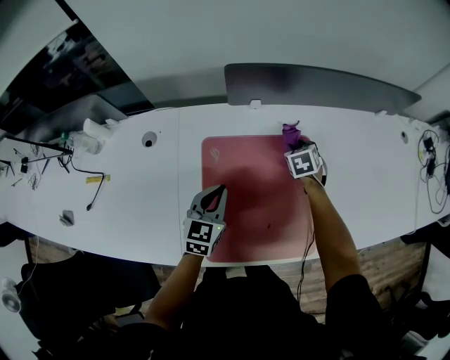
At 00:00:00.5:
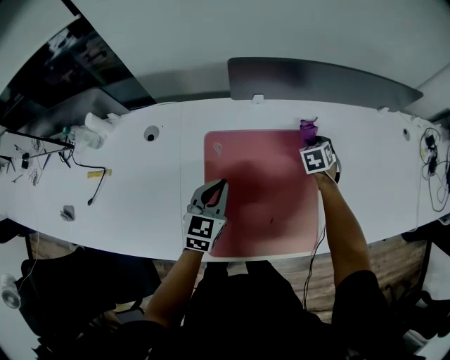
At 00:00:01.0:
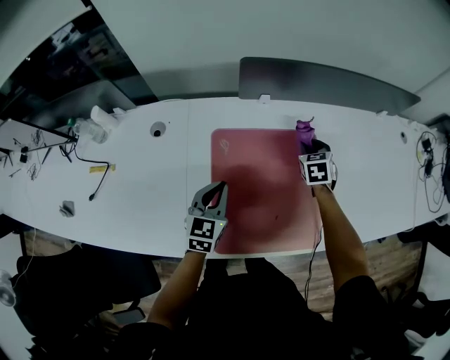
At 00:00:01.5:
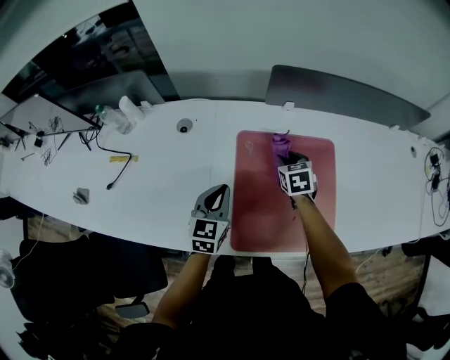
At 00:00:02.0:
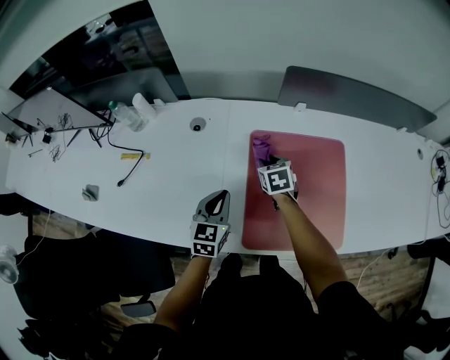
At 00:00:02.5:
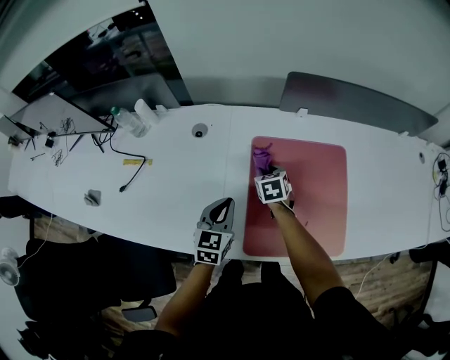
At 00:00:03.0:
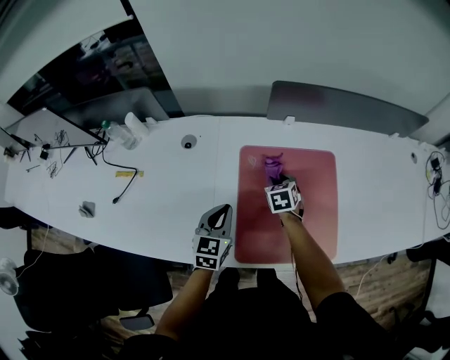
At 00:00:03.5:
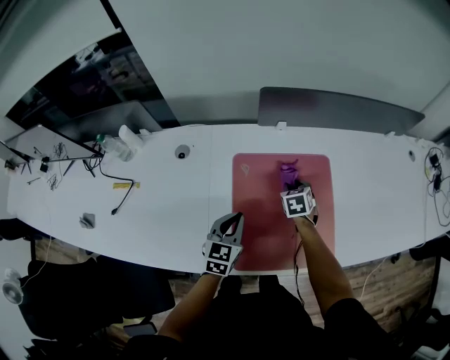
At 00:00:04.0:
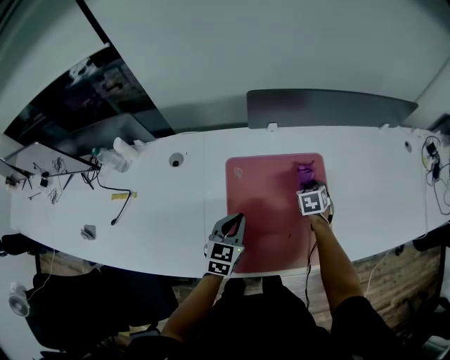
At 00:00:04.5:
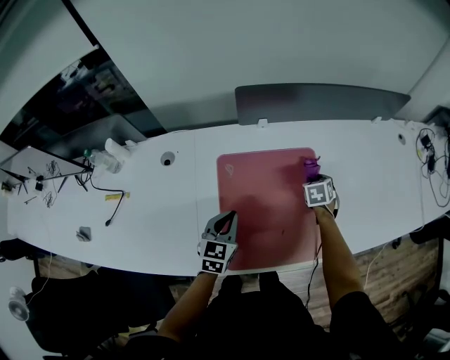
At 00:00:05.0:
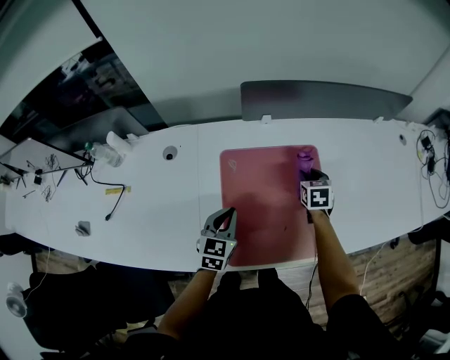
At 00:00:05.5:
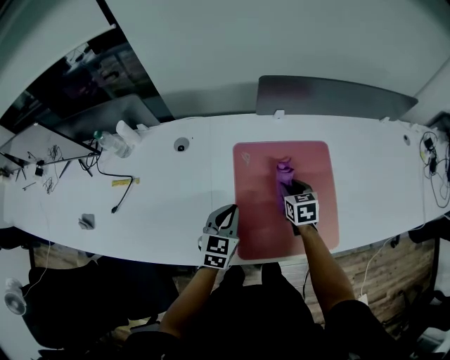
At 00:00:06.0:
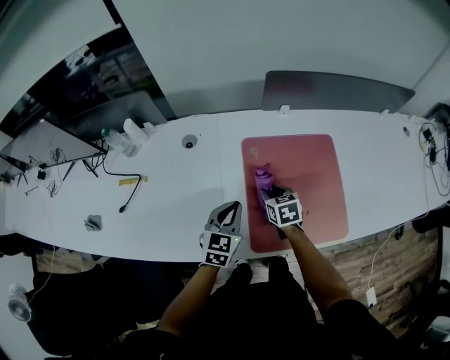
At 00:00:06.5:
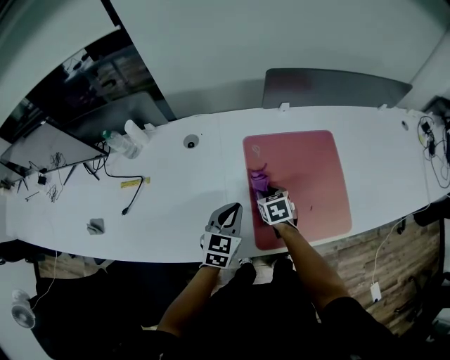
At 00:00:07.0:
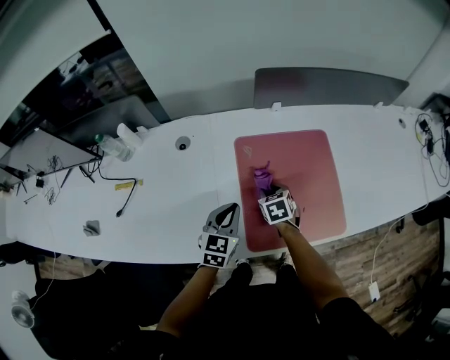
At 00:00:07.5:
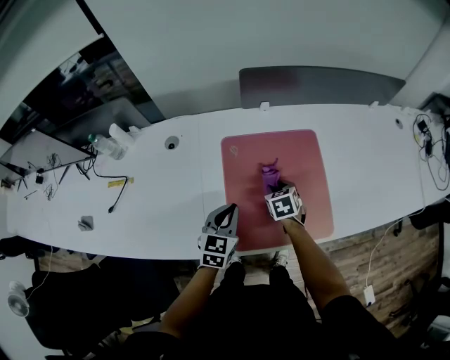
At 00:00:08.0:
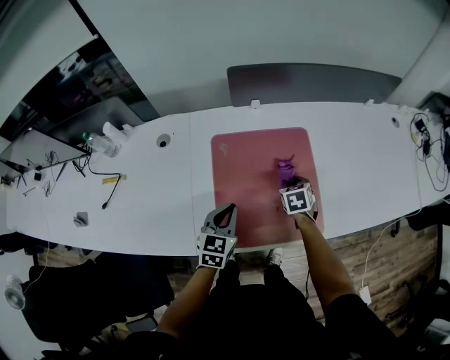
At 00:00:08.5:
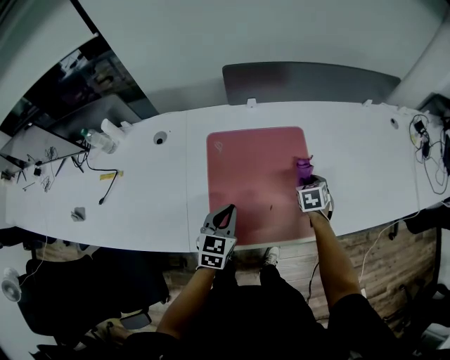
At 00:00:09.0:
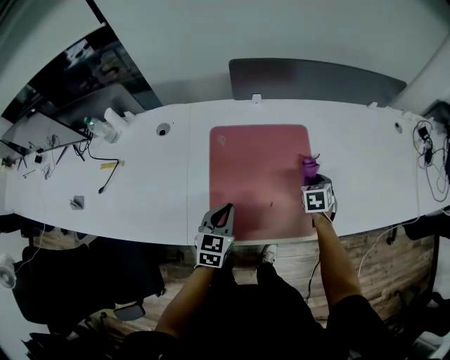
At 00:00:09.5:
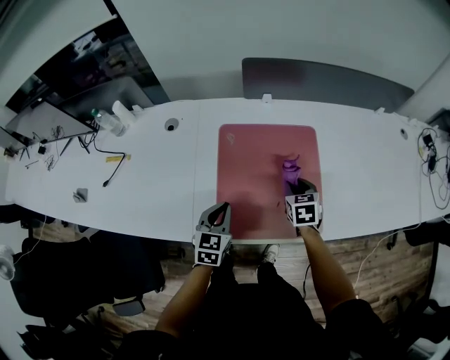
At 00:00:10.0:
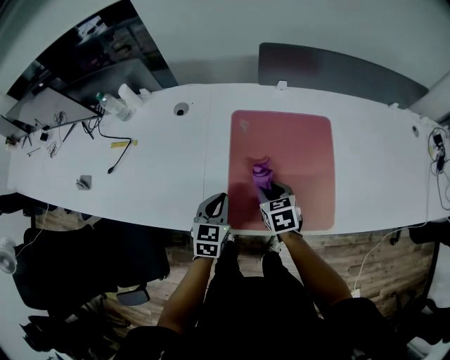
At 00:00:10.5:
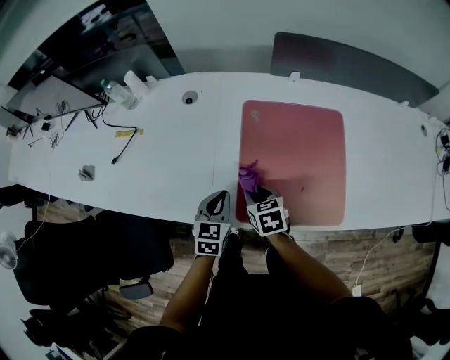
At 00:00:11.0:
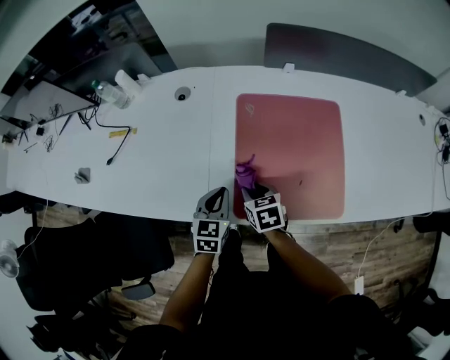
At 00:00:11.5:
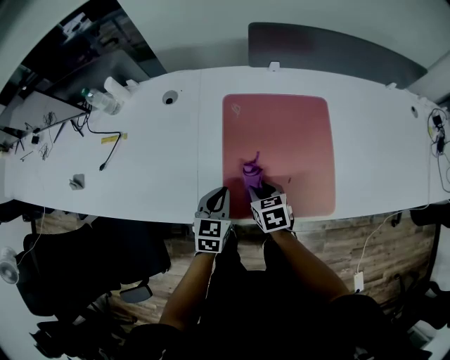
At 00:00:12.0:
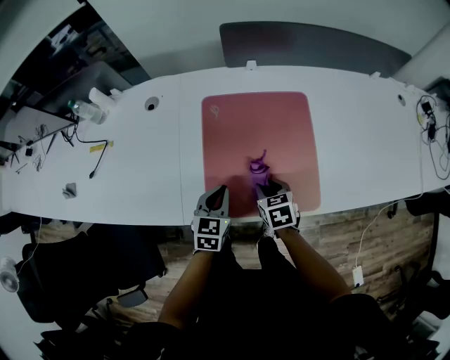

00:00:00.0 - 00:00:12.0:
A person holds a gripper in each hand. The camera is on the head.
00:00:00.0 - 00:00:02.0: The left gripper shifts approximately 15 cm to the left and backward. The right gripper travels to the left and backward by about 30 cm.
00:00:02.0 - 00:00:04.0: The left gripper travels to the right by roughly 10 cm. Meanwhile the right gripper shifts some 25 cm to the right, and changes its angle by roughly 20 degrees.
00:00:04.0 - 00:00:06.0: The left gripper heads to the left, covering roughly 10 cm. Meanwhile the right gripper moves to the left and backward, roughly 25 cm, and swivels approximately 20 degrees.
00:00:06.0 - 00:00:08.0: The right gripper travels to the right by some 20 cm; the left gripper is displaced to the right by some 10 cm.
00:00:08.0 - 00:00:10.0: The left gripper travels to the left by roughly 5 cm, while the right gripper shifts roughly 15 cm to the left and backward.
00:00:10.0 - 00:00:12.0: The right gripper moves to the right and backward, roughly 10 cm. The left gripper travels to the right by about 5 cm.

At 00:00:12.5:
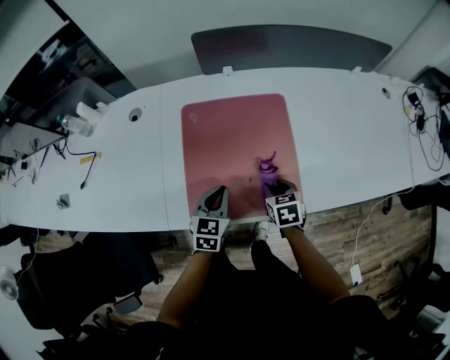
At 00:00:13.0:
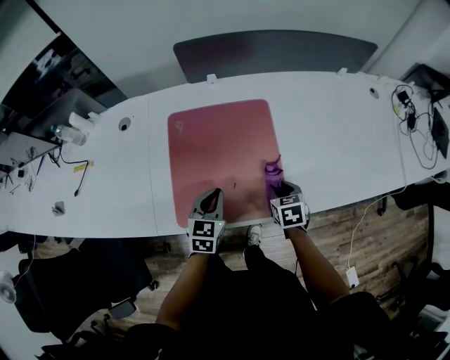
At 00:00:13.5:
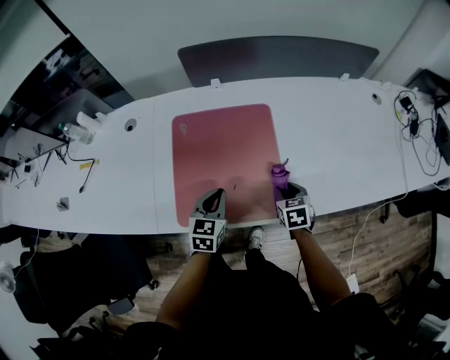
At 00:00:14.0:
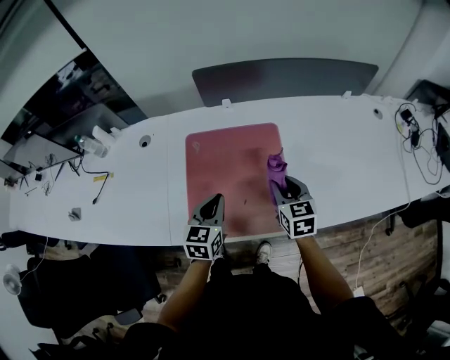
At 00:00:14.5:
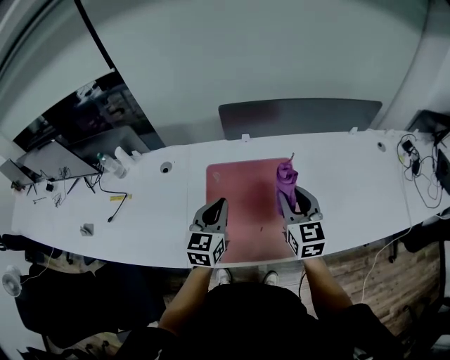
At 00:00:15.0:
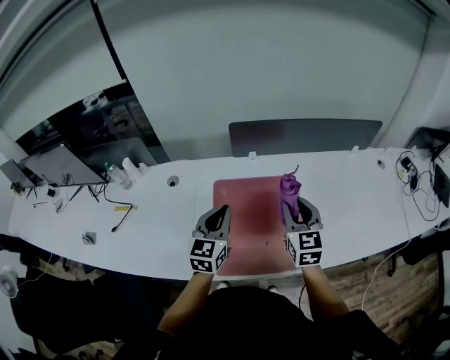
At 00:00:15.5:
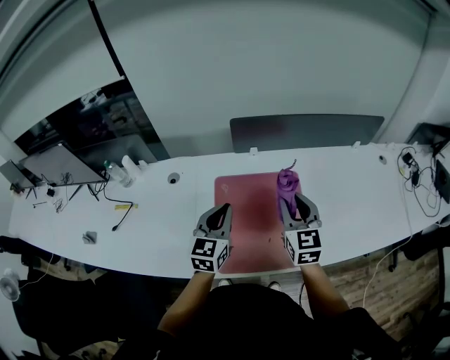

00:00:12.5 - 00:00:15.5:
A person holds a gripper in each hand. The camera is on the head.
00:00:12.5 - 00:00:14.0: The left gripper travels upward by about 10 cm; the right gripper is displaced upward and forward by some 15 cm, and turns by approximately 20 degrees.
00:00:14.0 - 00:00:15.5: The left gripper moves upward, to the left and forward, about 15 cm. Meanwhile the right gripper shifts roughly 15 cm upward and to the left, and rotates some 20 degrees.

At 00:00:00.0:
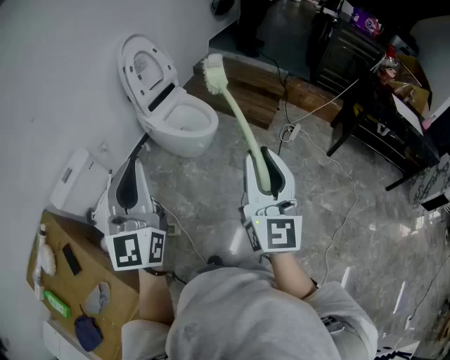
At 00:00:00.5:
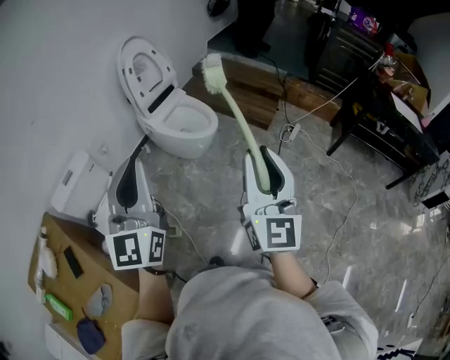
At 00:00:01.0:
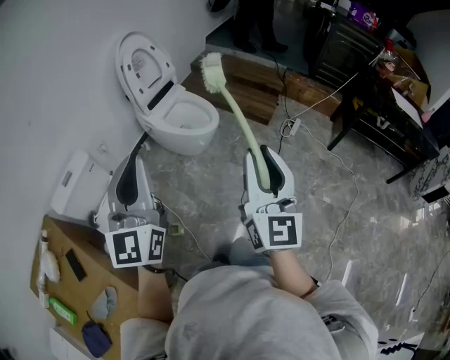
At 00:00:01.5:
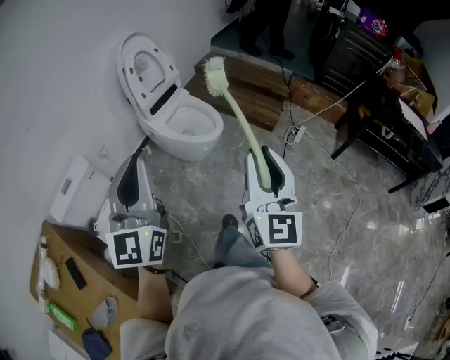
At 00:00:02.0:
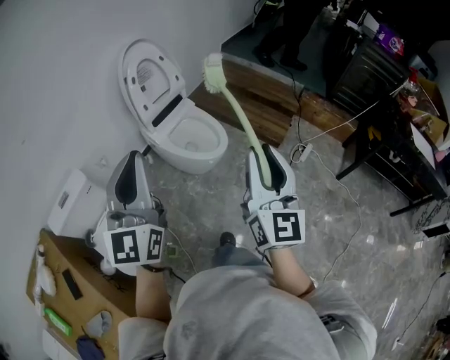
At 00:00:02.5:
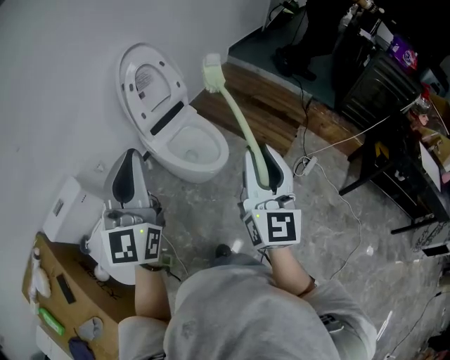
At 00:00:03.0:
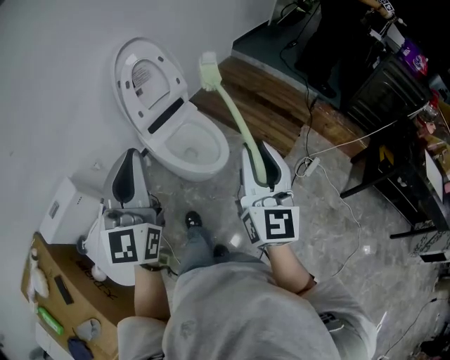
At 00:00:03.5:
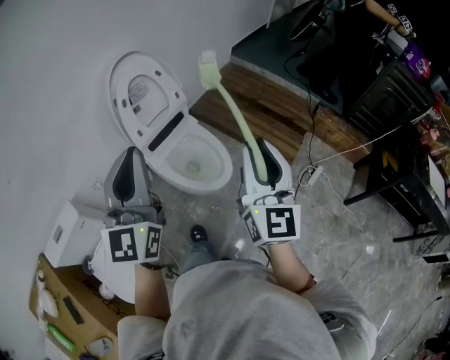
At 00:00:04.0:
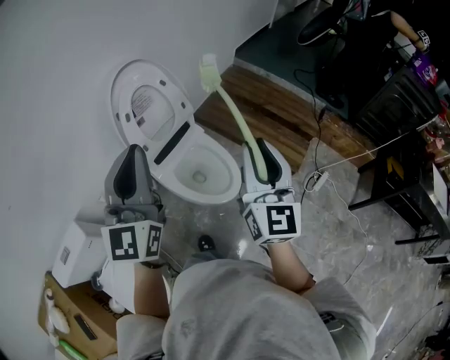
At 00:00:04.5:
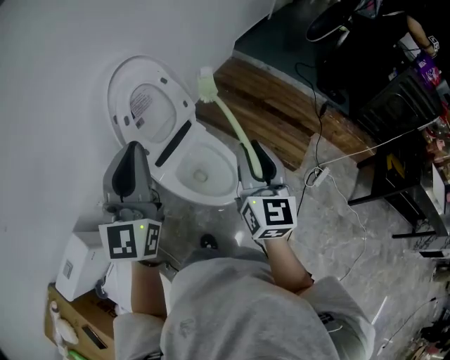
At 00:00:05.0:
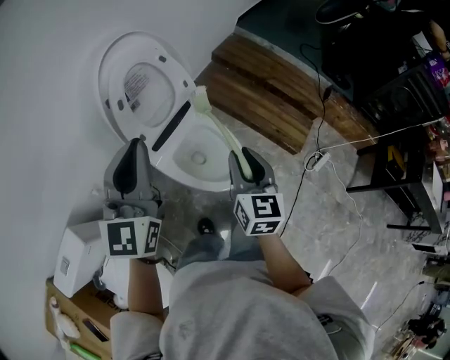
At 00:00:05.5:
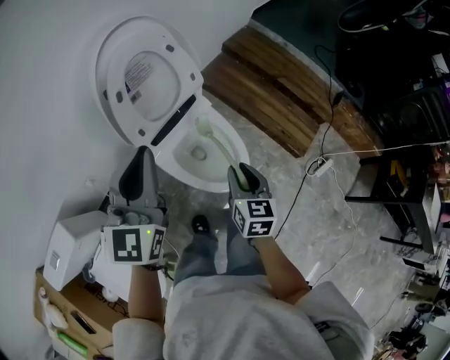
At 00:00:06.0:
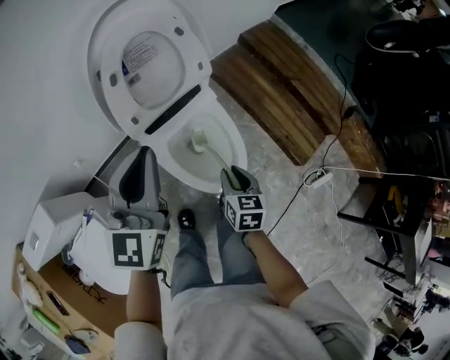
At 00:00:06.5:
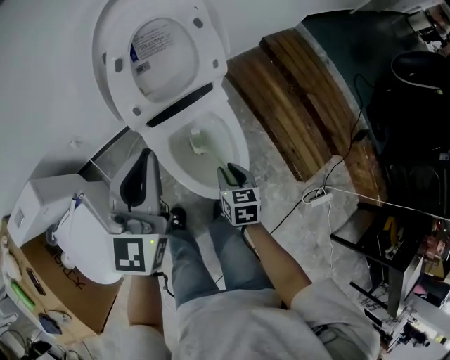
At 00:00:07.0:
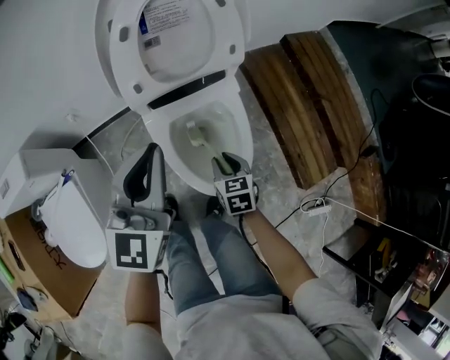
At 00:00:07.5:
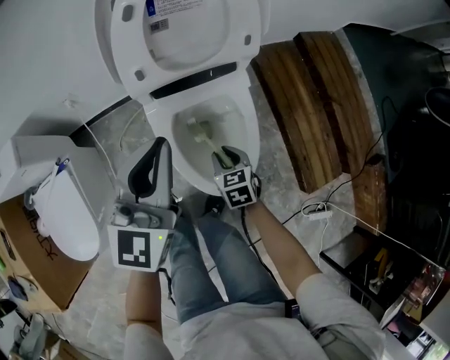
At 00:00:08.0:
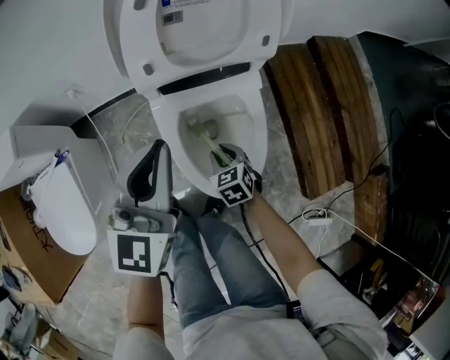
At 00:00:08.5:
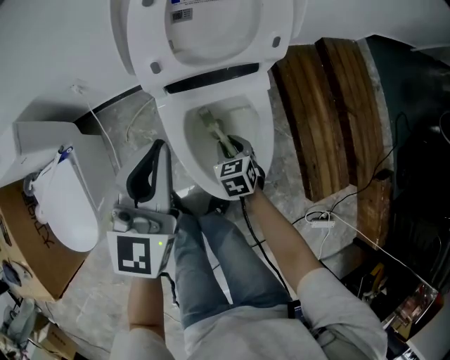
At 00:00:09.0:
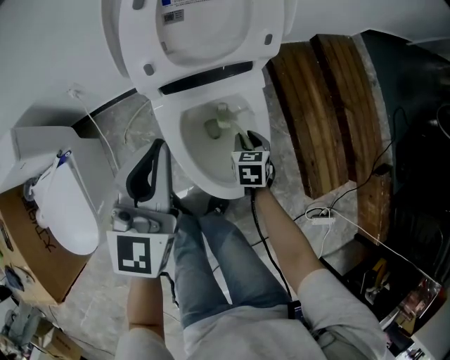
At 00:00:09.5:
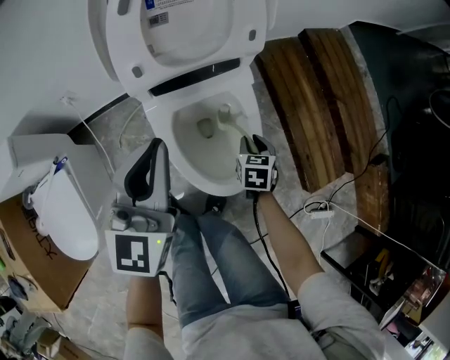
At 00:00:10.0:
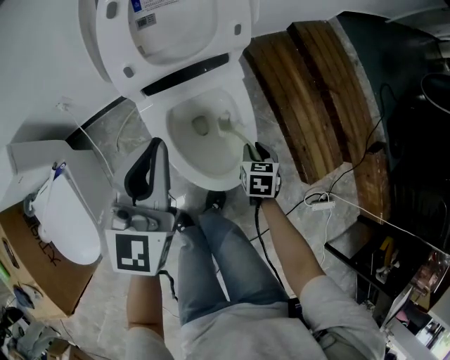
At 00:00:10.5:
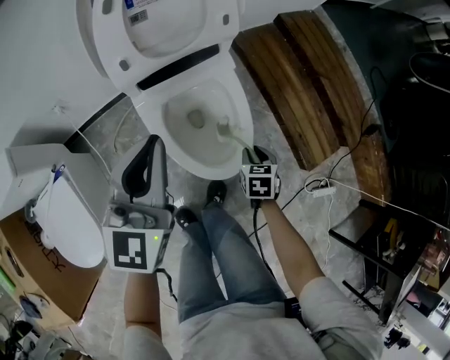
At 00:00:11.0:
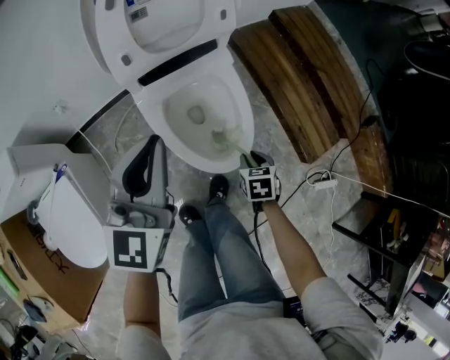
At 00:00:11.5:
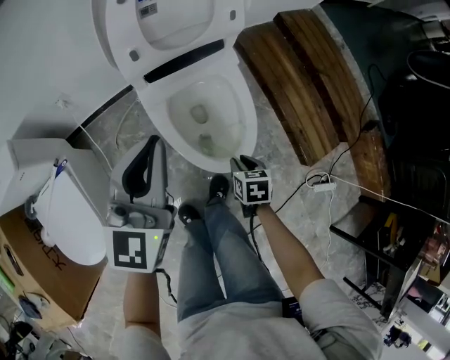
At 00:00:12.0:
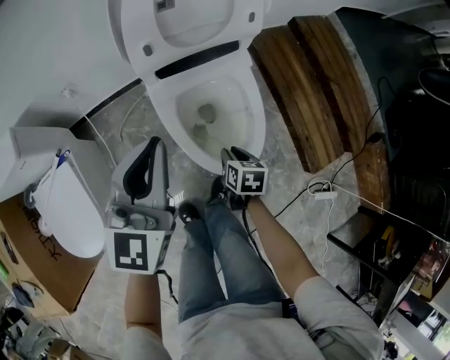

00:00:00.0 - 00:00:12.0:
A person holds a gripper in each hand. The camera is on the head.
00:00:00.0 - 00:00:02.0: Both grippers travel together forward, some 20 cm.
00:00:02.0 - 00:00:04.0: Both grippers move forward, approximately 35 cm.
00:00:04.0 - 00:00:06.0: The left gripper heads downward and forward, covering about 25 cm; the right gripper heads downward, covering some 40 cm, and points its fingers approximately 50 degrees further downward.
00:00:06.0 - 00:00:08.0: Both grippers move downward, roughly 20 cm. The right gripper rolls counterclockwise, seen from behind, by approximately 40 degrees.
00:00:08.0 - 00:00:10.0: The right gripper is displaced to the right by roughly 15 cm, and rotates roughly 40 degrees.
00:00:10.0 - 00:00:12.0: The right gripper moves to the left and backward, some 15 cm; the left gripper heads backward, covering about 5 cm.
